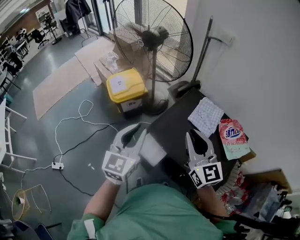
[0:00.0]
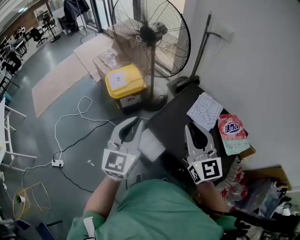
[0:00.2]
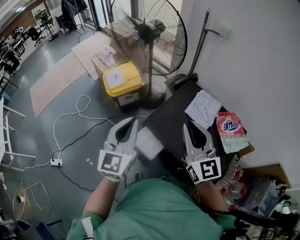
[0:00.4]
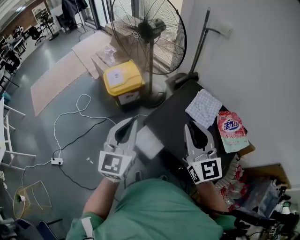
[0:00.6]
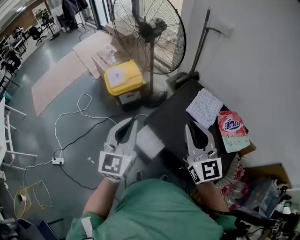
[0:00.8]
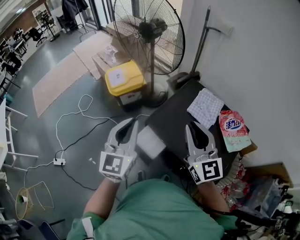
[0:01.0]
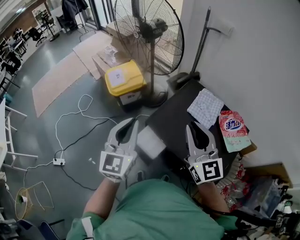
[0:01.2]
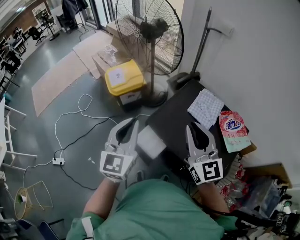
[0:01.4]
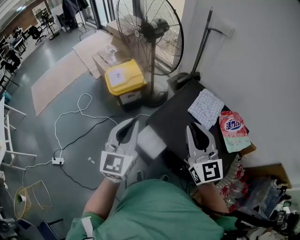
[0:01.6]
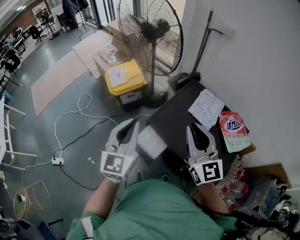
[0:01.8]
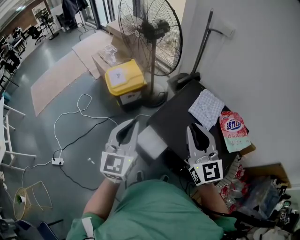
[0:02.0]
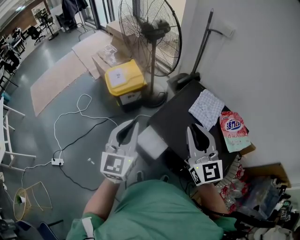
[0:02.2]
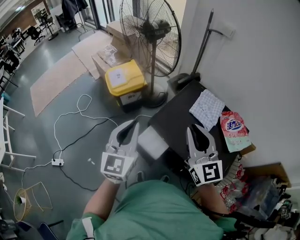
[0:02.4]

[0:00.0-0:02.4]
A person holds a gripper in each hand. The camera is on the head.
0:00.0 to 0:02.4: The grippers stay close to where they were, moving slightly.

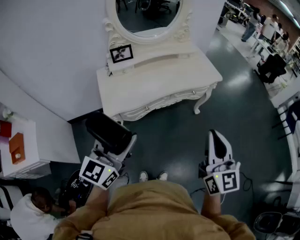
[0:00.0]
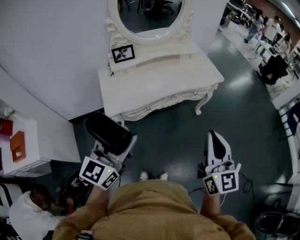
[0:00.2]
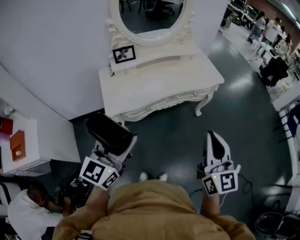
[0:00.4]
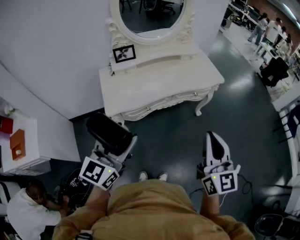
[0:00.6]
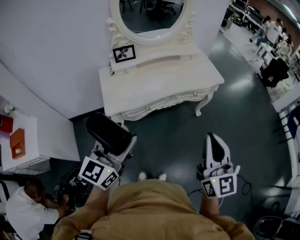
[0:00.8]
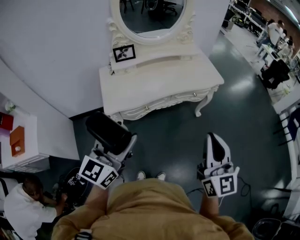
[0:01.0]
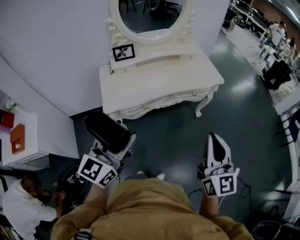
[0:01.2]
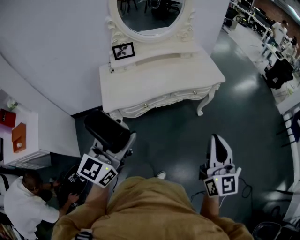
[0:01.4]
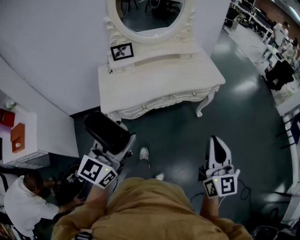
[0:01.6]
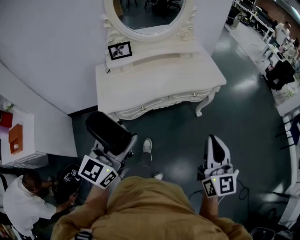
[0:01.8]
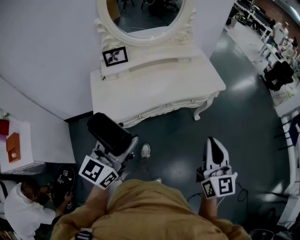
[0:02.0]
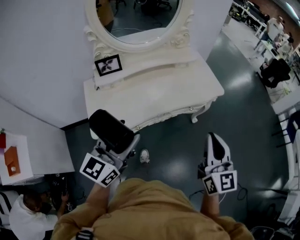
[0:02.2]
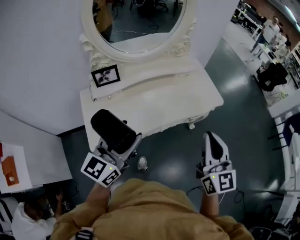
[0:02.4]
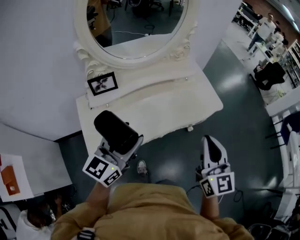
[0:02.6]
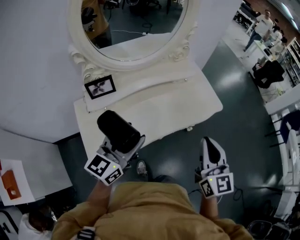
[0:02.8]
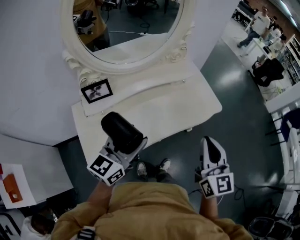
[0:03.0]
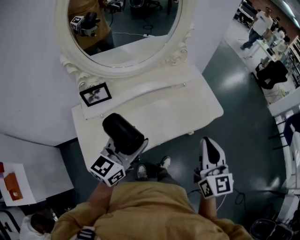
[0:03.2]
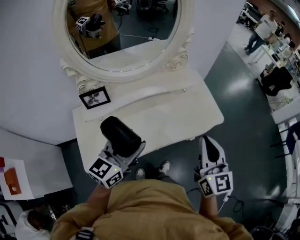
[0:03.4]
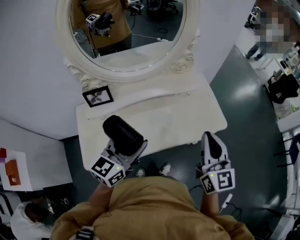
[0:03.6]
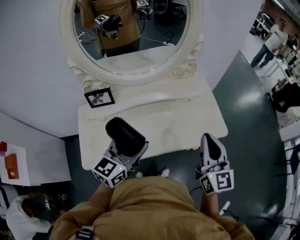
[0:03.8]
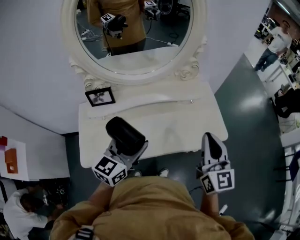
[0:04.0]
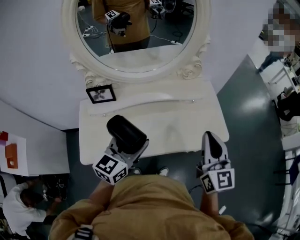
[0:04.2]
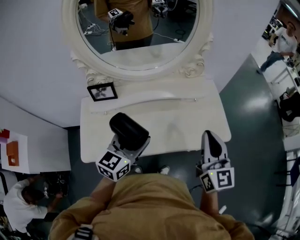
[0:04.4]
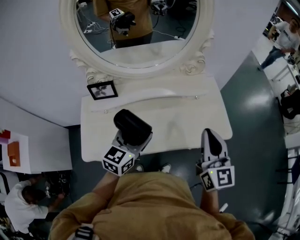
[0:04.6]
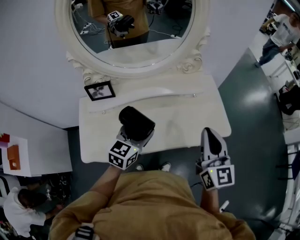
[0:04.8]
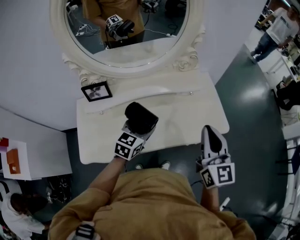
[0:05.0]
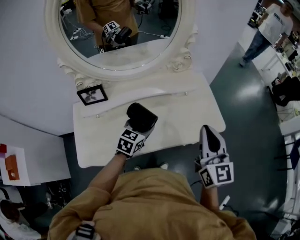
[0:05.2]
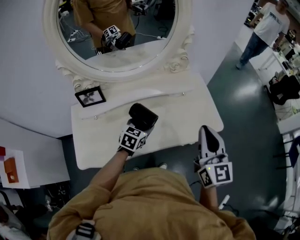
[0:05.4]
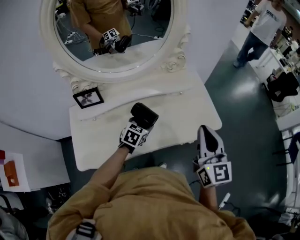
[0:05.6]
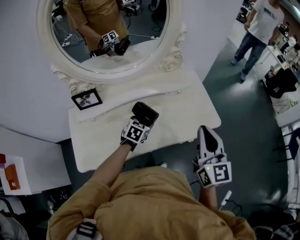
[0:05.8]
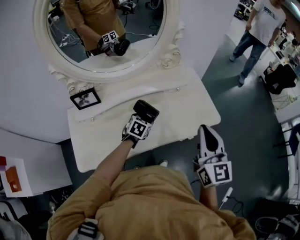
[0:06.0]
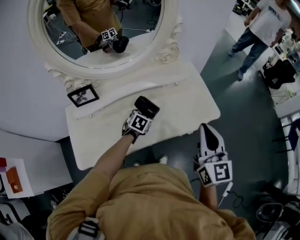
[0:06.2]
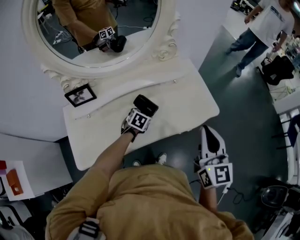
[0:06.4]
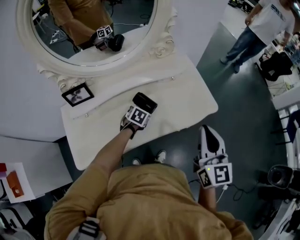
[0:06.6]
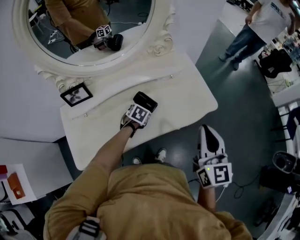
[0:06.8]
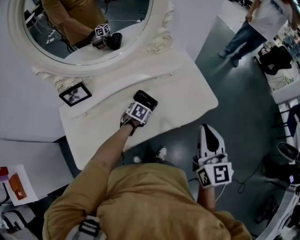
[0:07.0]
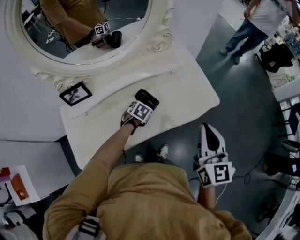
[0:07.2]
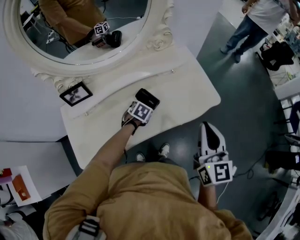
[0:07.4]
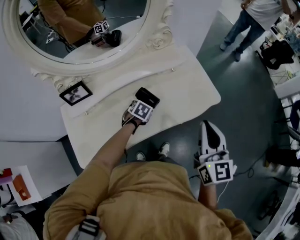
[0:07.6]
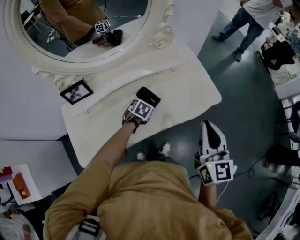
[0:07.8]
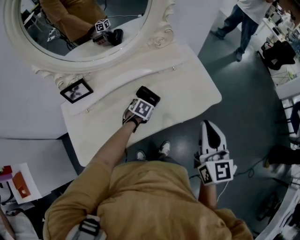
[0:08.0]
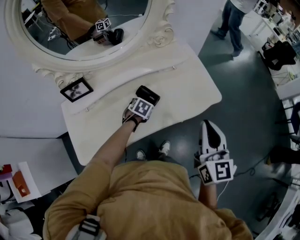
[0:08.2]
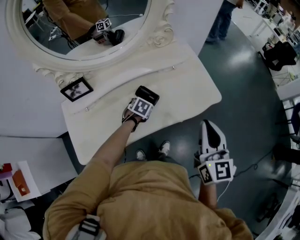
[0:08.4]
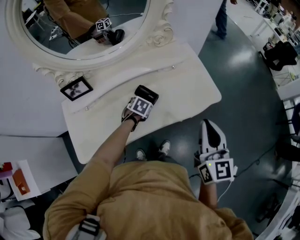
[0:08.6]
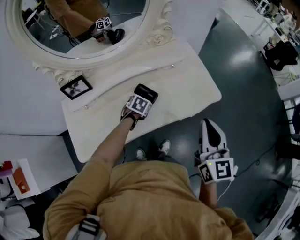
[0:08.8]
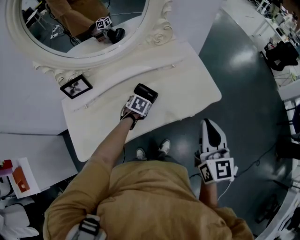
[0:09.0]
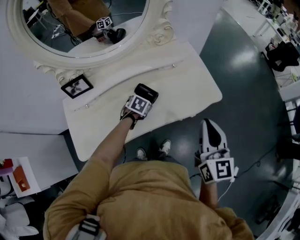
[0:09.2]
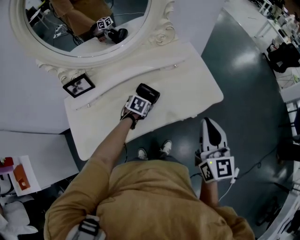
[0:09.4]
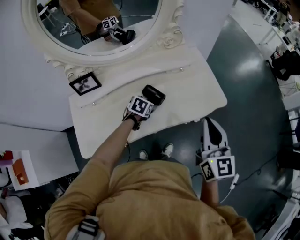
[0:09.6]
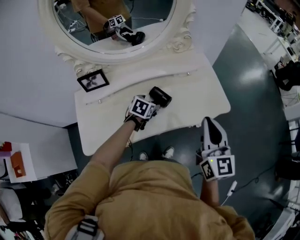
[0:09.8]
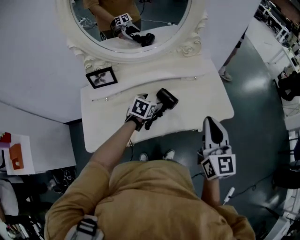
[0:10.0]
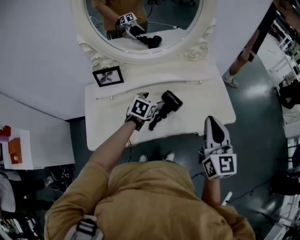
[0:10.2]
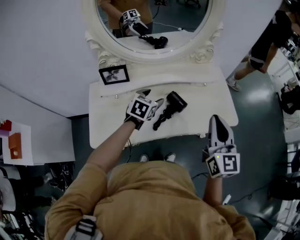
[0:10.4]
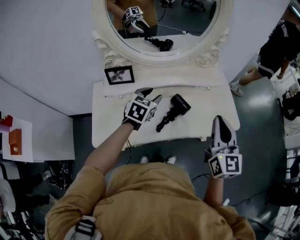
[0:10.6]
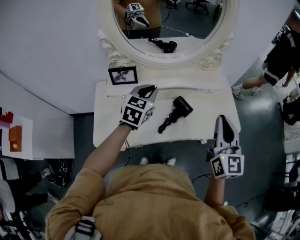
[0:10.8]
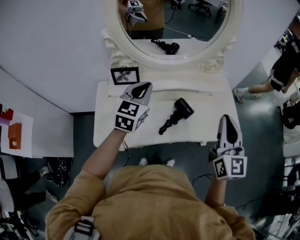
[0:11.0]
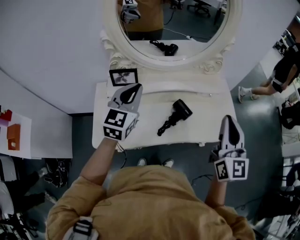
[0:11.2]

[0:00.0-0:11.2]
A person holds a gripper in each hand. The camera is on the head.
0:00.0 to 0:01.6: Both grippers move to the right, approximately 5 cm.
0:01.6 to 0:03.2: The grippers both shift forward by roughly 40 cm.
0:03.2 to 0:04.8: The right gripper travels forward by approximately 15 cm. Meanwhile the left gripper moves forward, downward and to the right, approximately 15 cm, and rotates some 20 degrees.
0:04.8 to 0:06.4: The left gripper is displaced downward and forward by approximately 20 cm, and tips its fingers downward by approximately 30 degrees. Meanwhile the right gripper goes approximately 5 cm to the right.
0:06.4 to 0:08.0: The grippers make only small movements.
0:08.0 to 0:09.6: The left gripper moves roughly 5 cm.
0:09.6 to 0:11.2: The left gripper shifts approximately 35 cm upward and to the left, tilts its fingers some 40 degrees upward, and closes, while the right gripper travels to the left and upward by some 15 cm.

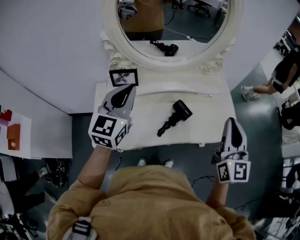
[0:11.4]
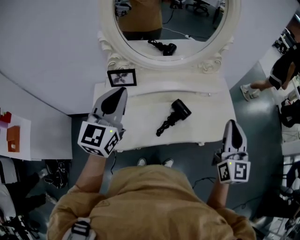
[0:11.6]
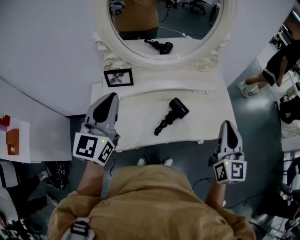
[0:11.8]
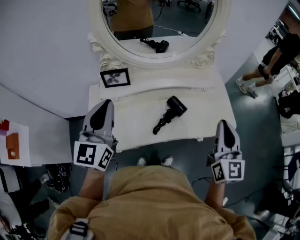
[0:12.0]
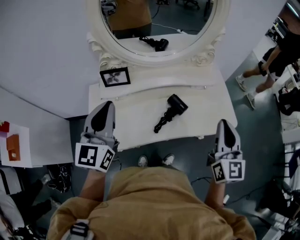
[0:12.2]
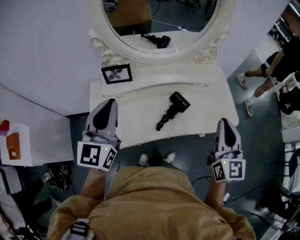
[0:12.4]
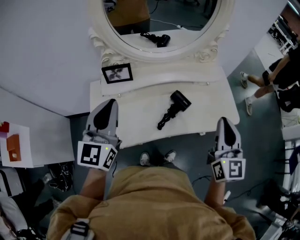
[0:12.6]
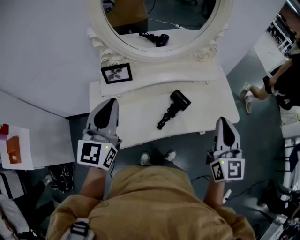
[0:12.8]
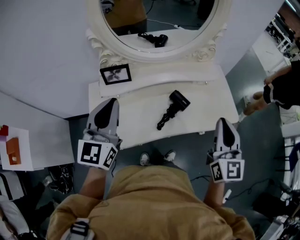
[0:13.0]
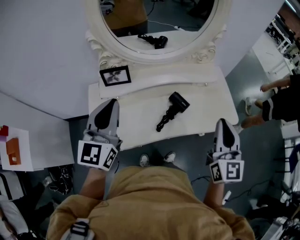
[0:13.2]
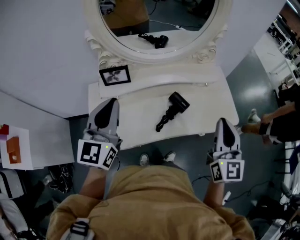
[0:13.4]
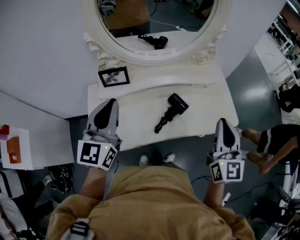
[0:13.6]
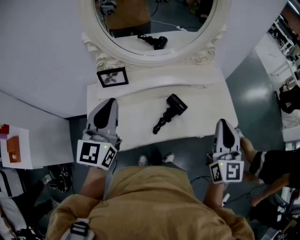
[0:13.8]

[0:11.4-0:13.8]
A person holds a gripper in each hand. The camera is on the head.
0:11.4 to 0:12.6: The right gripper shifts by about 5 cm. The left gripper moves backward, some 5 cm.
0:12.6 to 0:13.8: The grippers make only small movements.

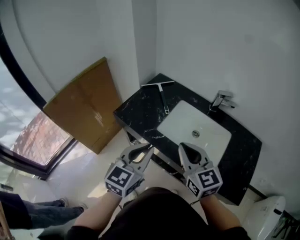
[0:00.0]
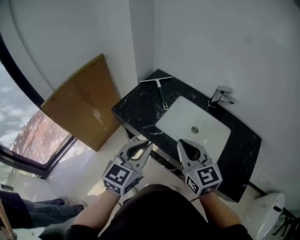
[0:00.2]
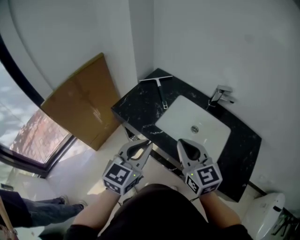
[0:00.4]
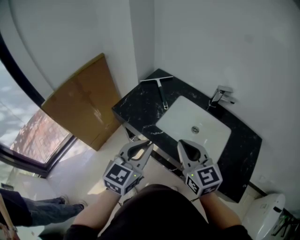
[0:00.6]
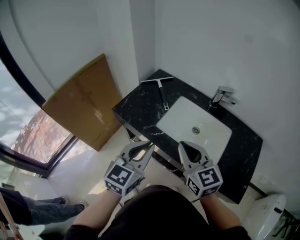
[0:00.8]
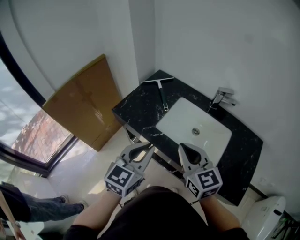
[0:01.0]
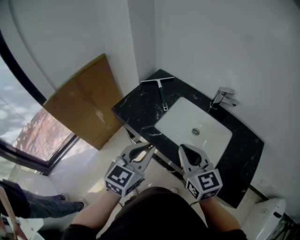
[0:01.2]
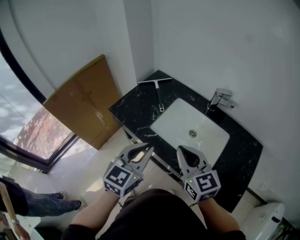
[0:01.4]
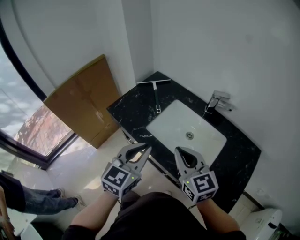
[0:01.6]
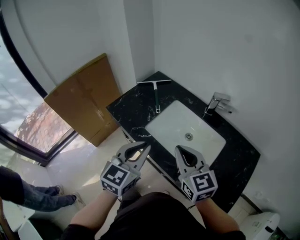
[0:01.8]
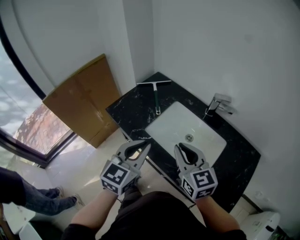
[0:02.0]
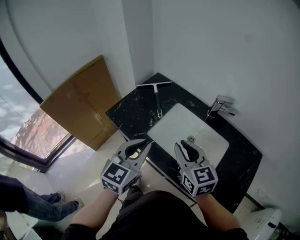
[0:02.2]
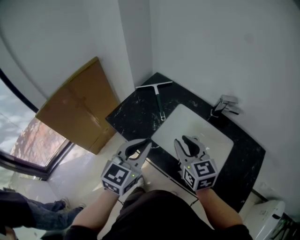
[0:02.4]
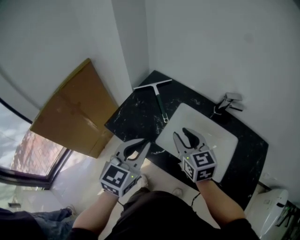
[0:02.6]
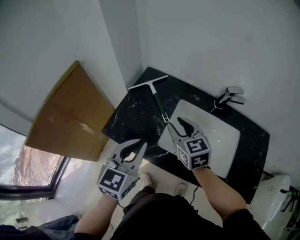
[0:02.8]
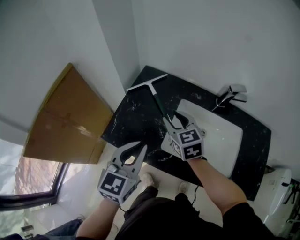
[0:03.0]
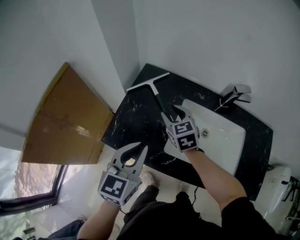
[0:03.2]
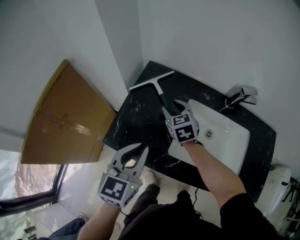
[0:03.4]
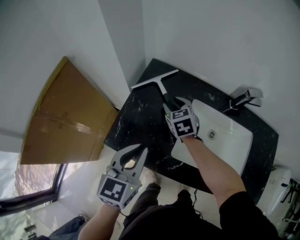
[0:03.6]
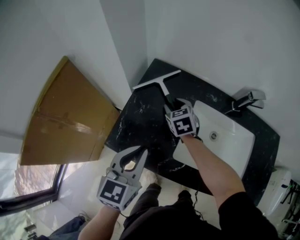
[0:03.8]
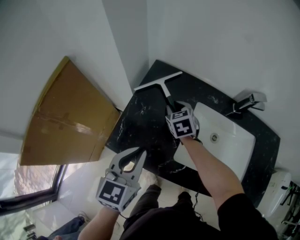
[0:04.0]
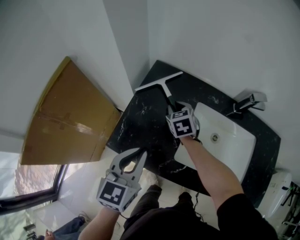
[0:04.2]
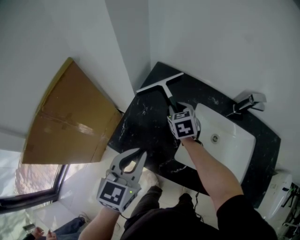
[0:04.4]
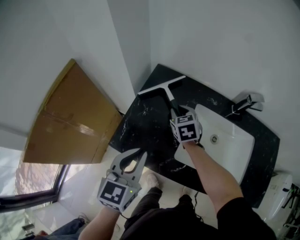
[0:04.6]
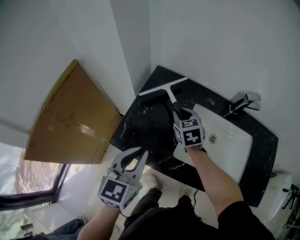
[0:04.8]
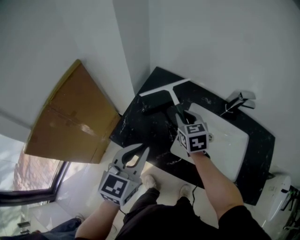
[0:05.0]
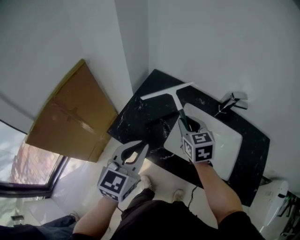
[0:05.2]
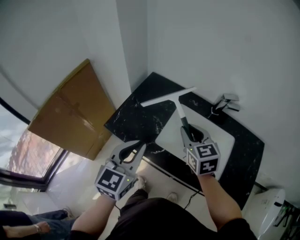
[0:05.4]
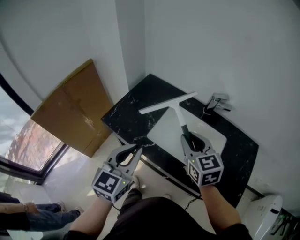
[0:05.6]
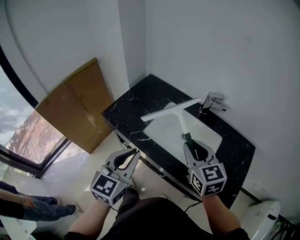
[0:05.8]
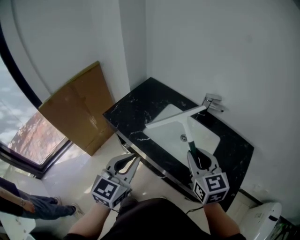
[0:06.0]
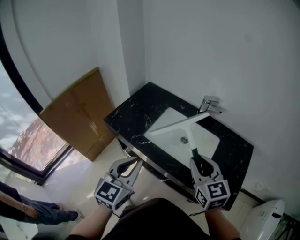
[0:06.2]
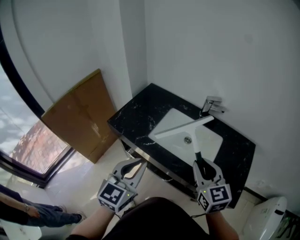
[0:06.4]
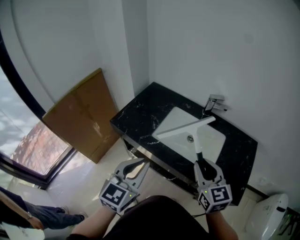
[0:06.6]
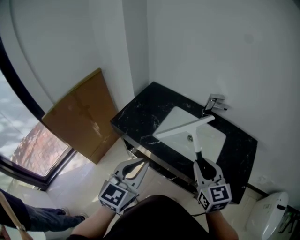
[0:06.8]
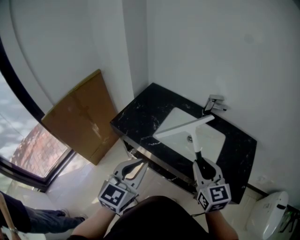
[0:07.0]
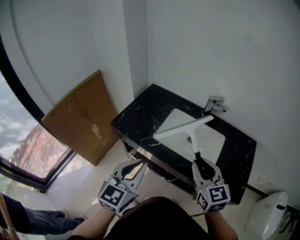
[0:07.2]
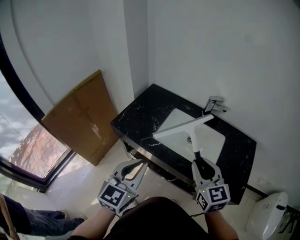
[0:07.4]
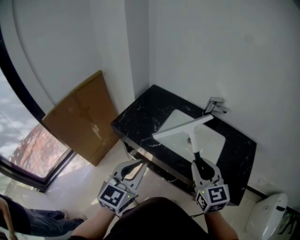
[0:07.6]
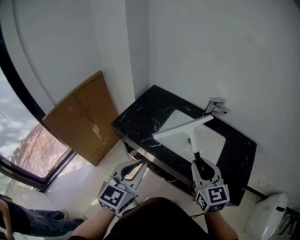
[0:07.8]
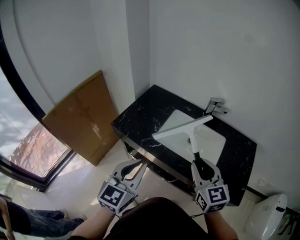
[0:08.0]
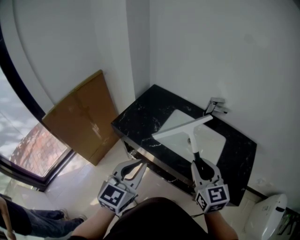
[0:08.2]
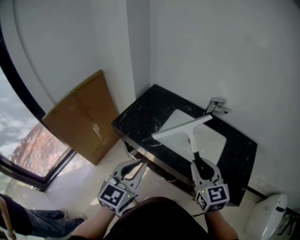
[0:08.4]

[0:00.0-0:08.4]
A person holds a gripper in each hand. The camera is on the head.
0:00.0 to 0:01.4: The right gripper changes place by some 5 cm, while the left gripper heads to the right, covering about 5 cm.
0:01.4 to 0:02.8: The right gripper heads forward, covering roughly 25 cm, turns by roughly 20 degrees, and opens its fingers, while the left gripper travels forward and to the left by some 20 cm.
0:02.8 to 0:04.2: The right gripper is displaced forward, downward and to the left by some 25 cm, and changes its angle by some 20 degrees; the left gripper goes about 10 cm to the left, downward and forward.
0:04.2 to 0:05.6: The right gripper moves backward, upward and to the right, about 40 cm, and changes its angle by roughly 20 degrees, while the left gripper travels backward, to the right and upward by some 20 cm.
0:05.6 to 0:07.0: The two grippers go approximately 10 cm backward.
0:07.0 to 0:08.4: The grippers stay close to where they were, moving slightly.
